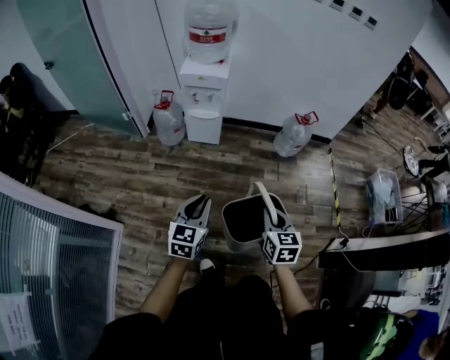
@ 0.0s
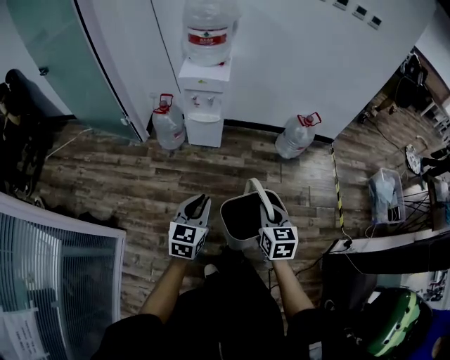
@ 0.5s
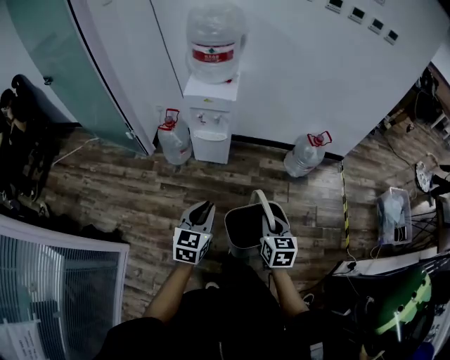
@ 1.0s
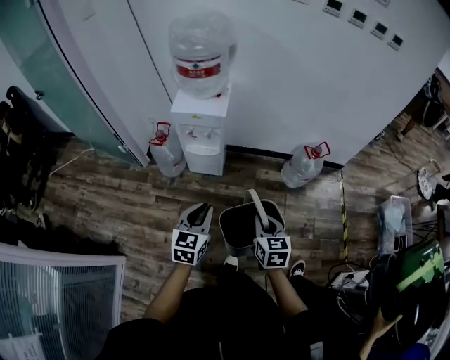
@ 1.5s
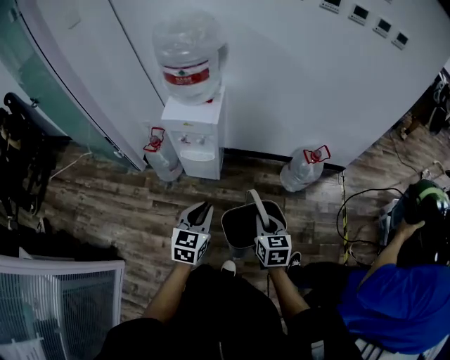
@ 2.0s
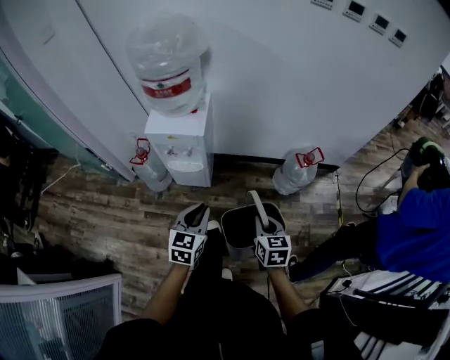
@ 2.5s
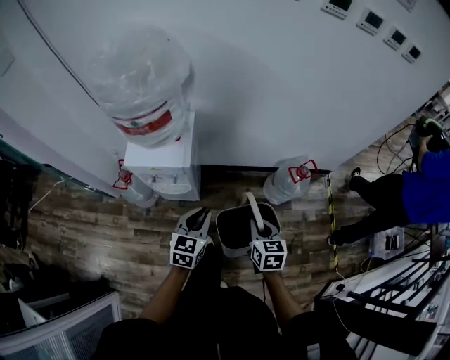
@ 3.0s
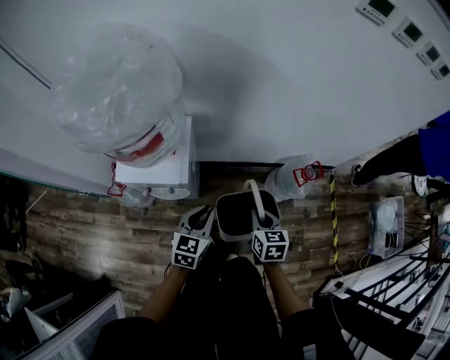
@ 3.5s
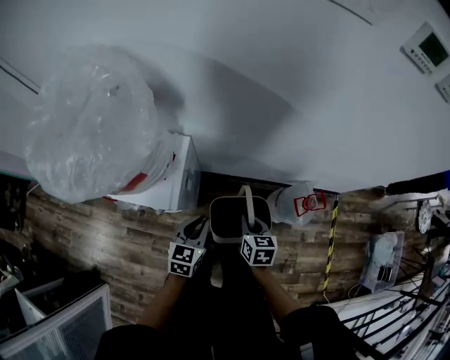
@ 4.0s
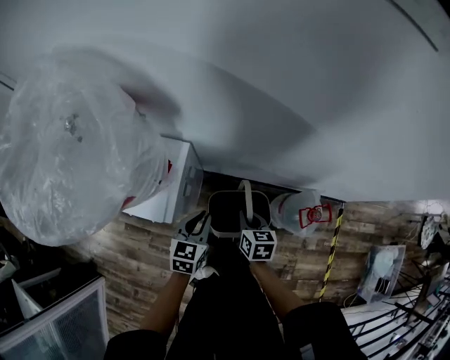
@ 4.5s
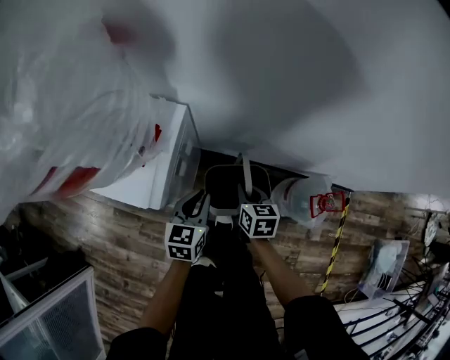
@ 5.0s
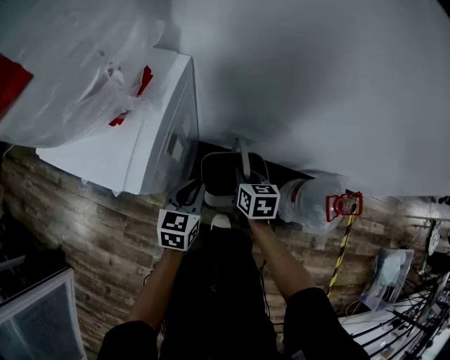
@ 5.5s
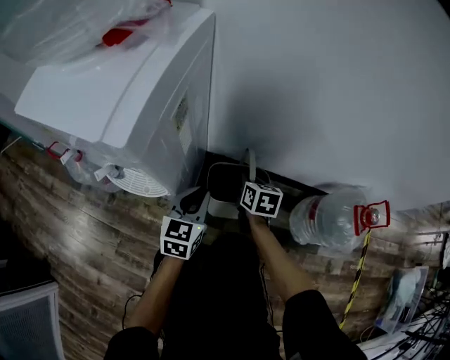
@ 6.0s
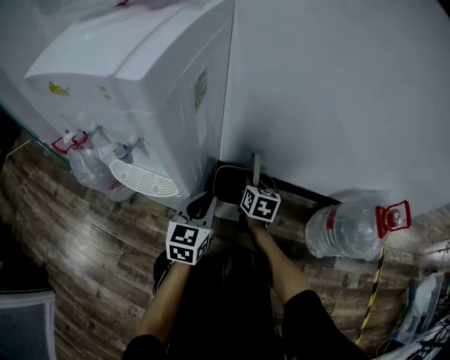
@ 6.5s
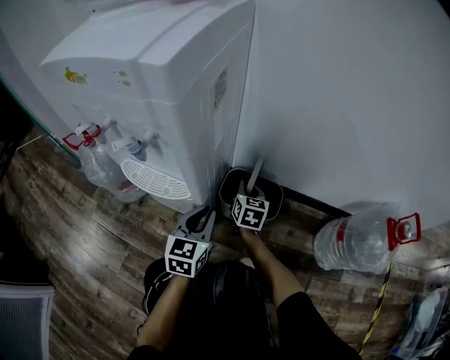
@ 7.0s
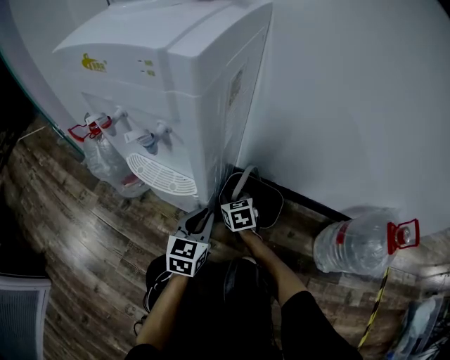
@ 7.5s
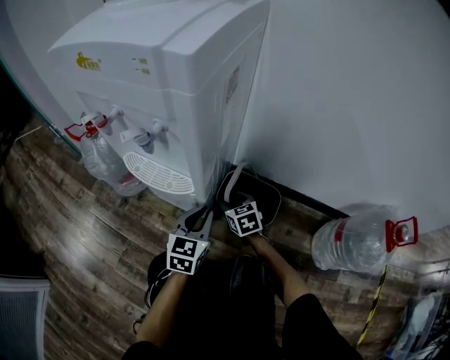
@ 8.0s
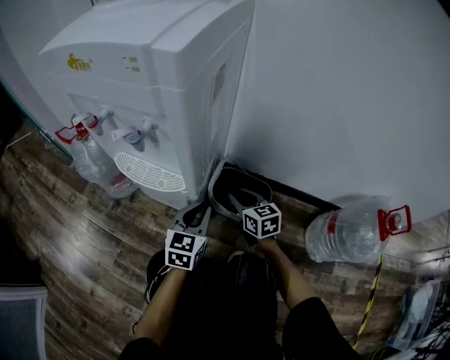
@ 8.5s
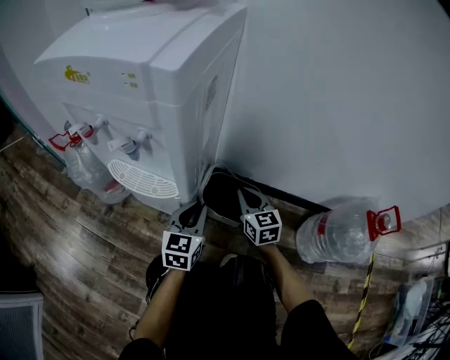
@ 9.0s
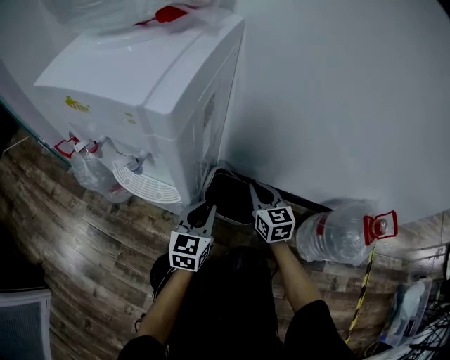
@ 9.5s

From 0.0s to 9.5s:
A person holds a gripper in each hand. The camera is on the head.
From 0.0s to 2.0s: Both grippers travel together forward, approximately 30 cm.
From 2.0s to 4.0s: Both grippers travel together forward, roughly 40 cm.
From 4.0s to 5.5s: The left gripper heads downward, covering some 25 cm. The right gripper travels downward and forward by approximately 30 cm.
From 5.5s to 7.5s: The two grippers go about 25 cm downward and to the left. The right gripper changes its angle by some 30 degrees.
From 7.5s to 9.5s: The right gripper shifts roughly 20 cm upward and to the right, turns by some 20 degrees, and opens, then closes again. Meanwhile the left gripper shifts approximately 10 cm upward and to the right.

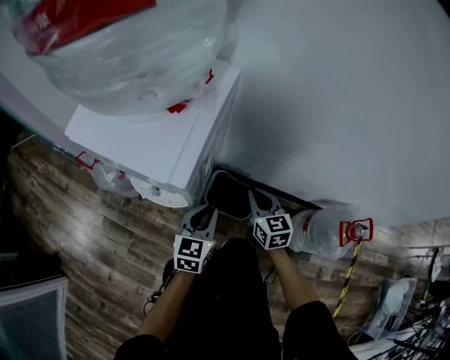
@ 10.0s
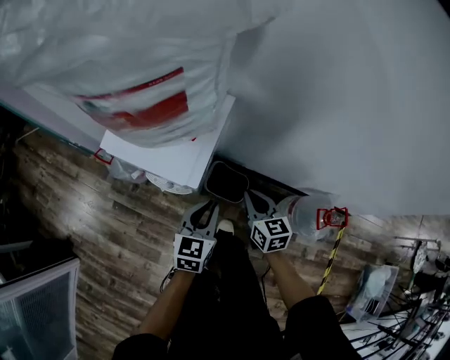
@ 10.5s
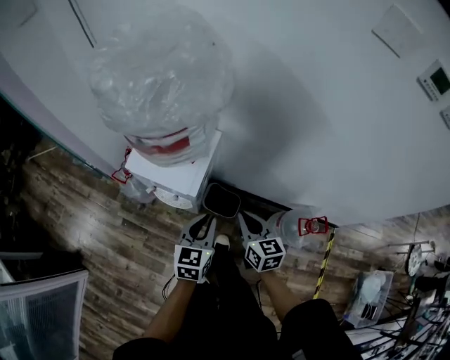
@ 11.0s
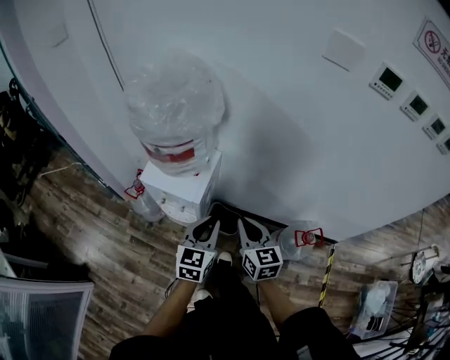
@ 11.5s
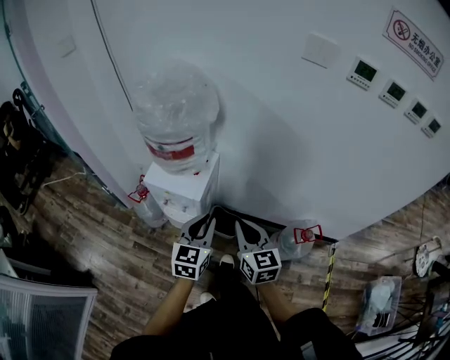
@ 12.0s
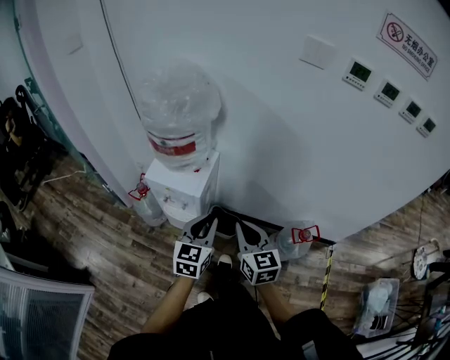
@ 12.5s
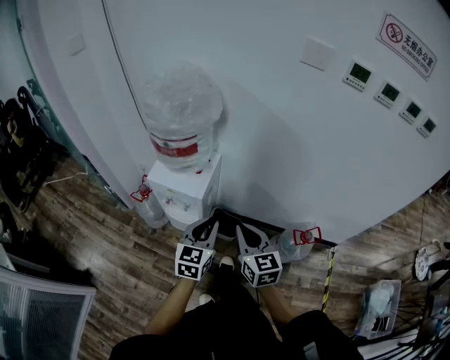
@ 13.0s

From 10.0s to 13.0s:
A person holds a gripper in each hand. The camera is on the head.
From 10.0s to 11.5s: Both grippers travel together upward, about 40 cm.
From 11.5s to 13.0s: The two grippers go some 10 cm backward.

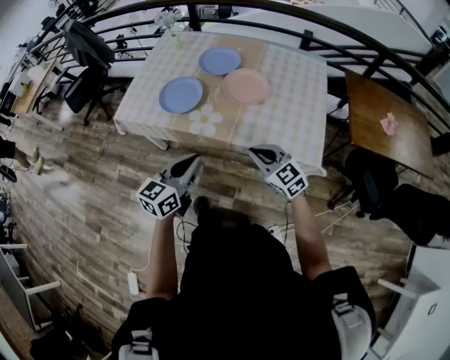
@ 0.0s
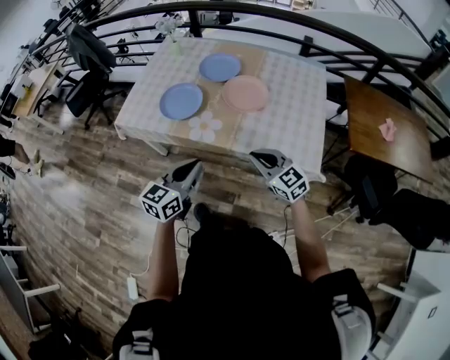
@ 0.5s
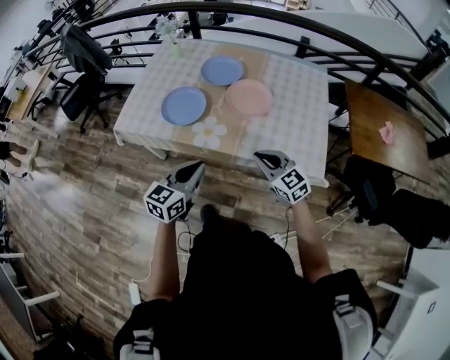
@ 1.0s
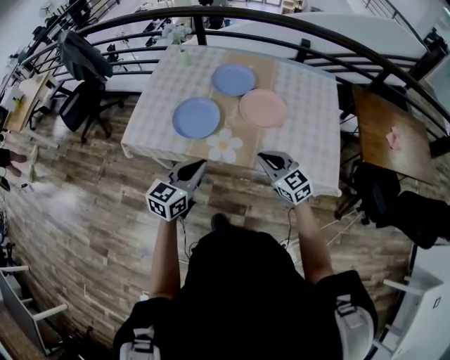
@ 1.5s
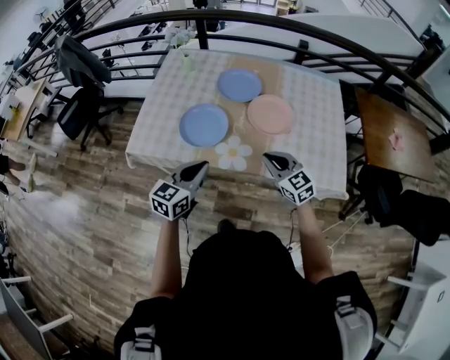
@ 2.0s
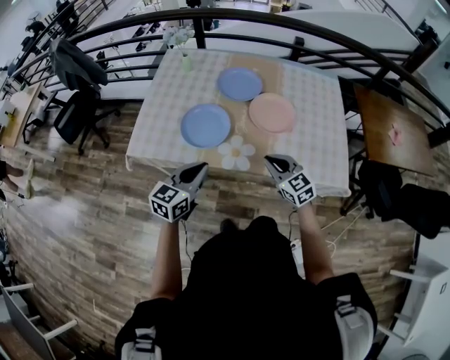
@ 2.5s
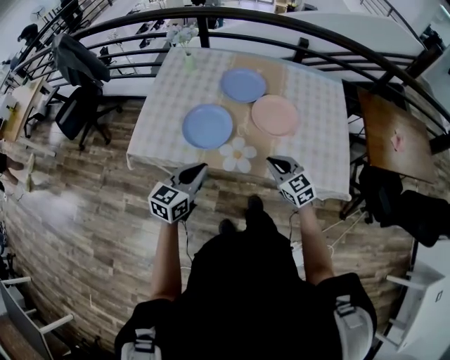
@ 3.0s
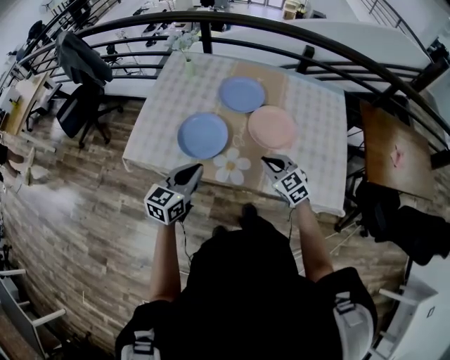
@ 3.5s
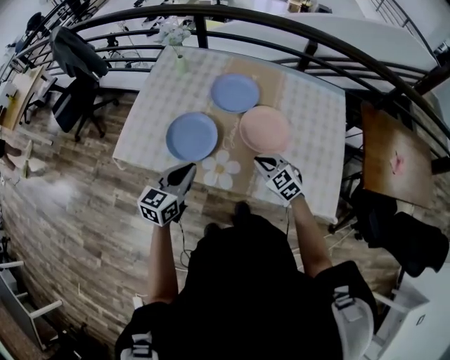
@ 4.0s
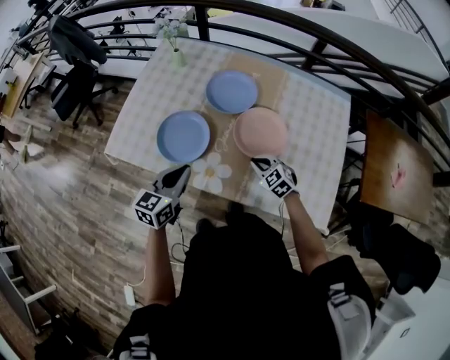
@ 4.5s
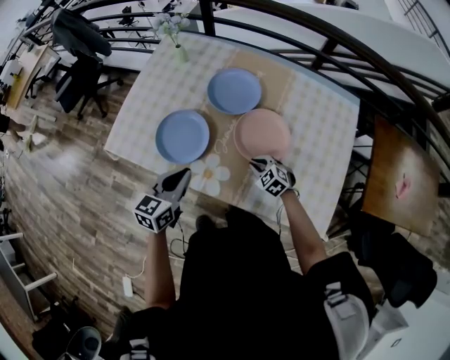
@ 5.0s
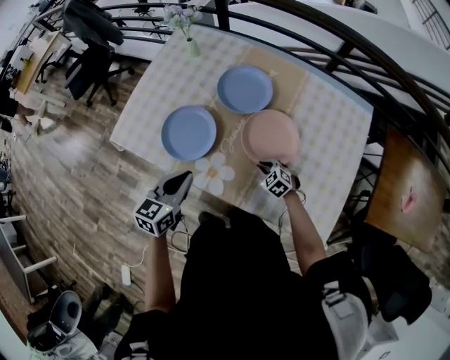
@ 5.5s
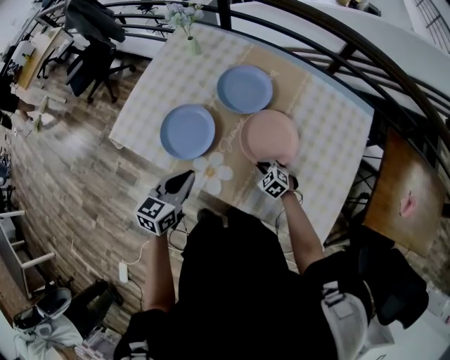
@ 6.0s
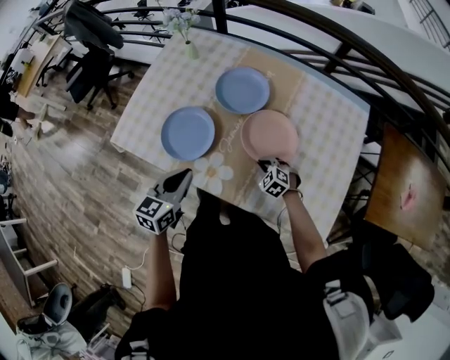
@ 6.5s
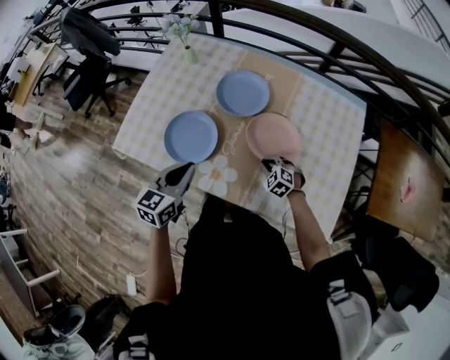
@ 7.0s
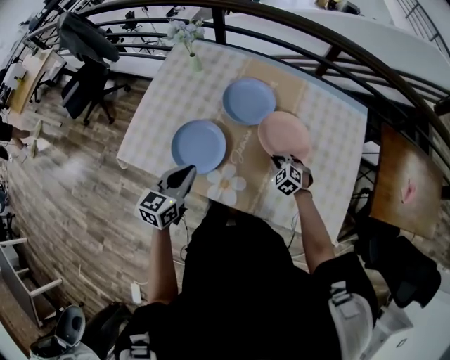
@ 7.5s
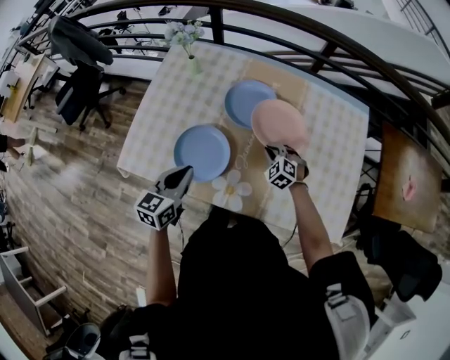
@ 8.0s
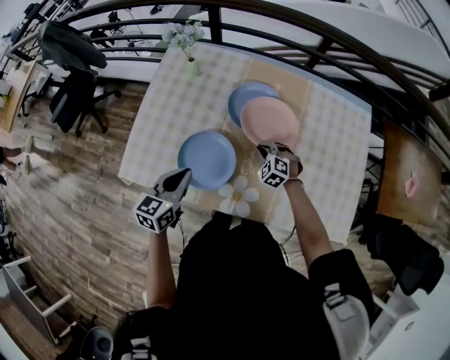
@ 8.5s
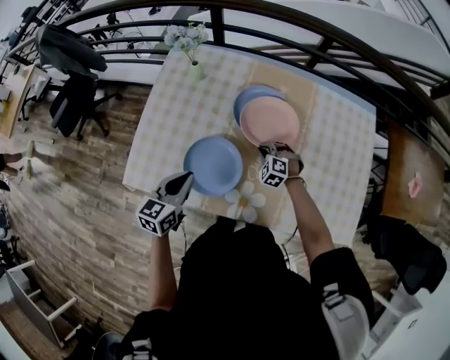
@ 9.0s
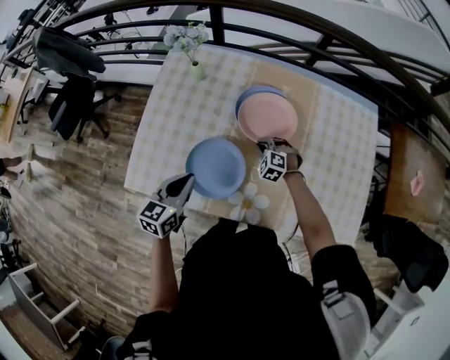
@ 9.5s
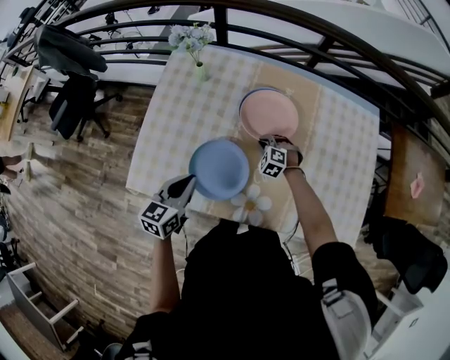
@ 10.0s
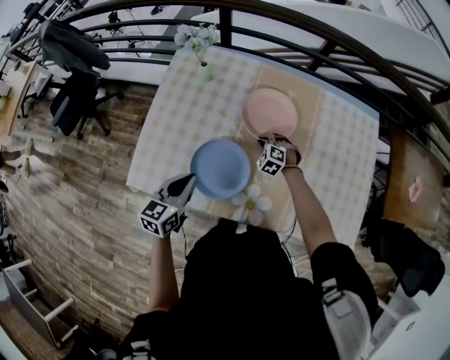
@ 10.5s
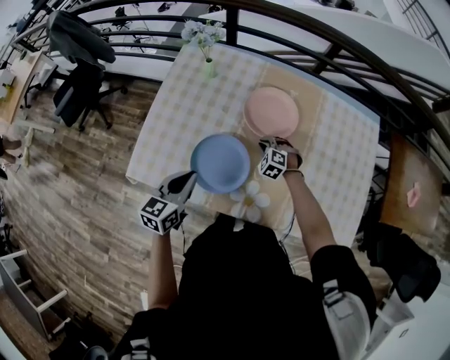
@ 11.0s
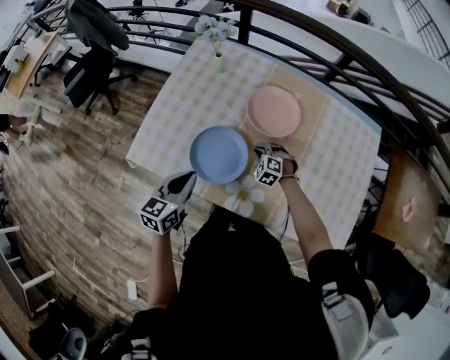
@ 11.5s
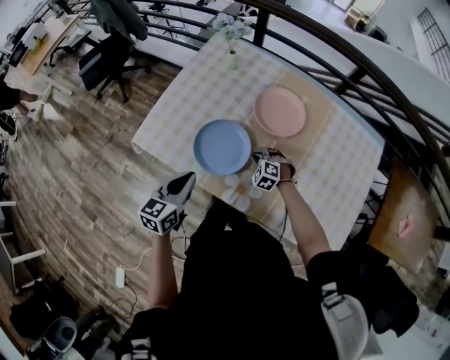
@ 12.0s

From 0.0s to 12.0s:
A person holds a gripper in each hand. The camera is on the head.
From 0.0s to 2.0s: Both grippers travel together forward and to the left, approximately 20 cm.
From 2.0s to 4.0s: The right gripper travels forward and downward by roughly 15 cm, and swivels about 20 degrees, while the left gripper is displaced forward by approximately 10 cm.
From 4.0s to 6.0s: The right gripper heads downward, covering some 20 cm, and turns by roughly 20 degrees; the left gripper travels to the right by roughly 5 cm.
From 6.0s to 8.0s: The right gripper heads forward and upward, covering roughly 15 cm, and changes its angle by roughly 20 degrees; the left gripper shifts about 15 cm to the left and forward.
From 8.0s to 10.0s: The right gripper shifts some 15 cm to the left, forward and downward, while the left gripper goes approximately 10 cm to the left.
From 10.0s to 12.0s: The two grippers go some 10 cm backward.

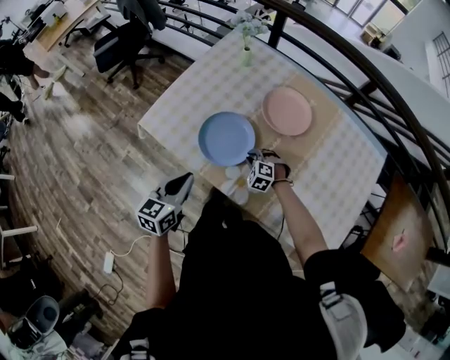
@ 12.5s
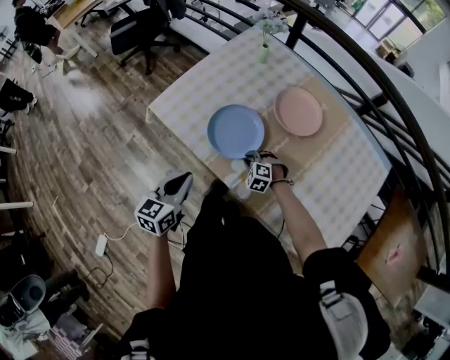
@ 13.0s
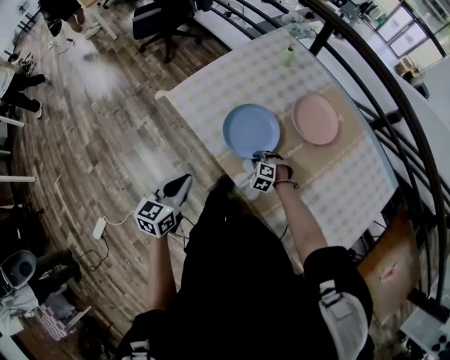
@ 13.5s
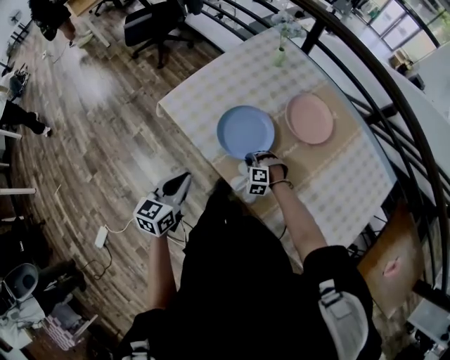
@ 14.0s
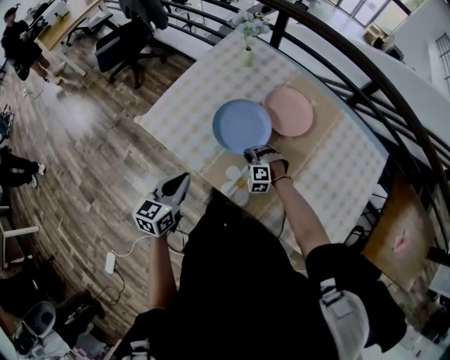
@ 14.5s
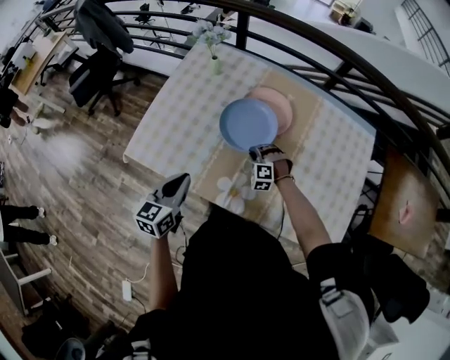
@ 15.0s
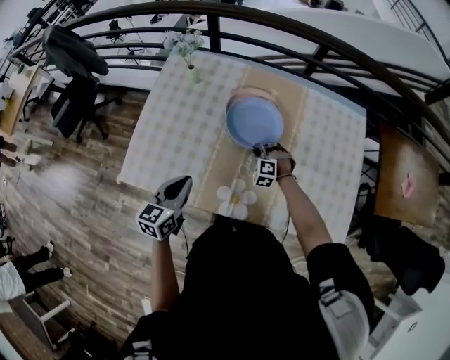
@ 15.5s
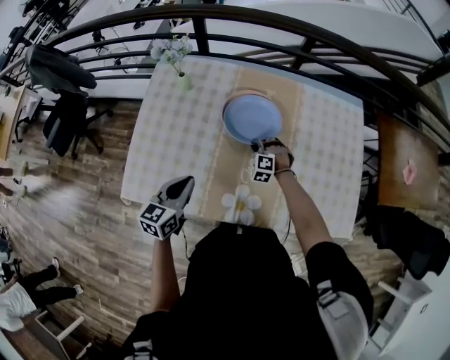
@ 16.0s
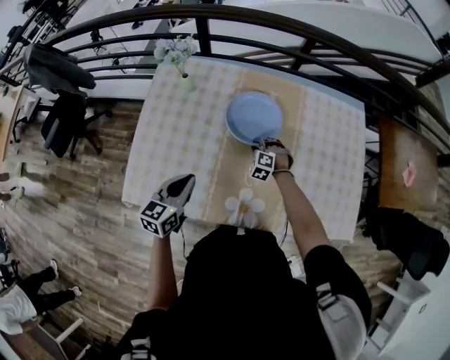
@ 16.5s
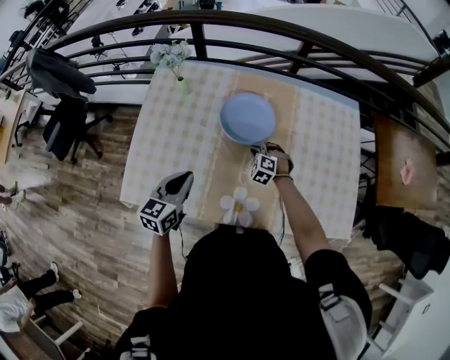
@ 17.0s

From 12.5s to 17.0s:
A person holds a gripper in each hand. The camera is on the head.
From 12.5s to 14.5s: The right gripper rotates some 20 degrees.
From 14.5s to 17.0s: The left gripper moves approximately 20 cm, and swivels approximately 30 degrees, while the right gripper ends up roughly 20 cm from where it was, and twists approximately 40 degrees clockwise, seen from behind.
